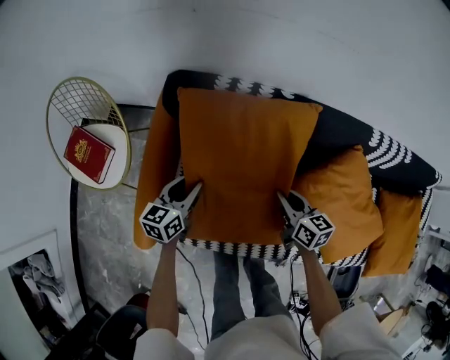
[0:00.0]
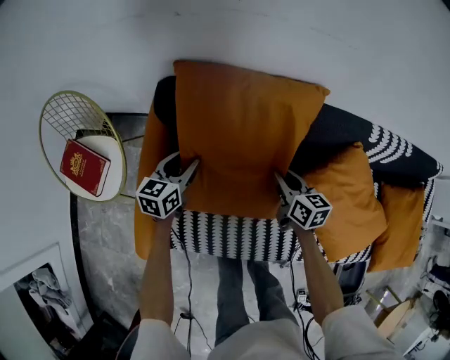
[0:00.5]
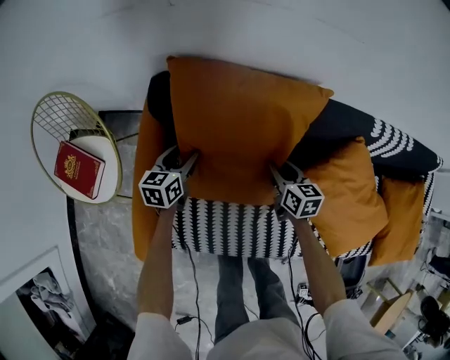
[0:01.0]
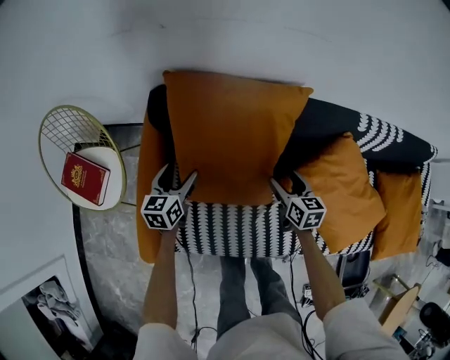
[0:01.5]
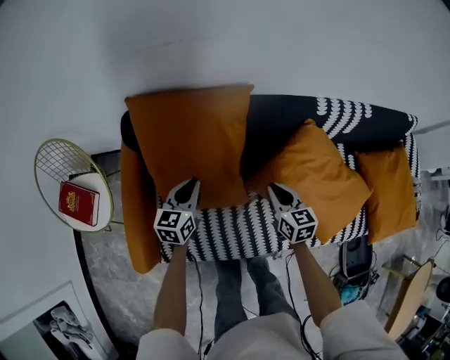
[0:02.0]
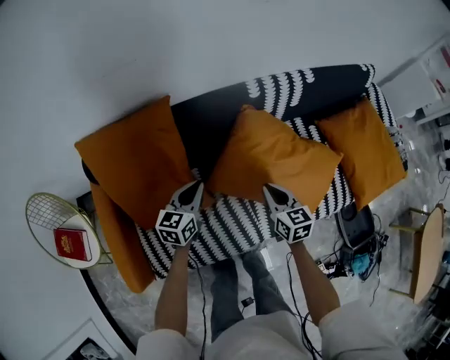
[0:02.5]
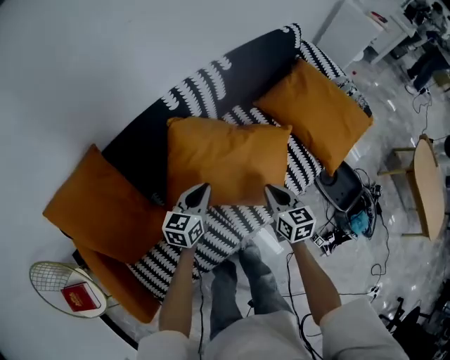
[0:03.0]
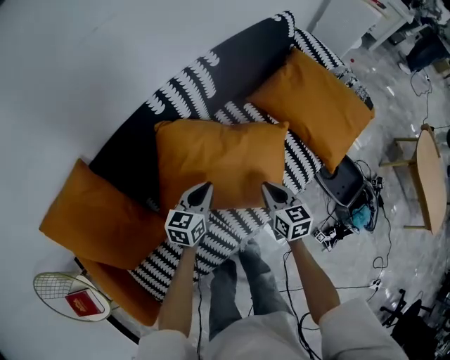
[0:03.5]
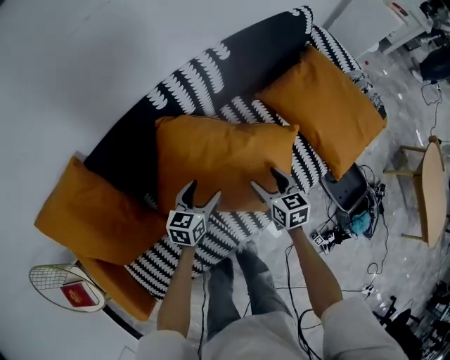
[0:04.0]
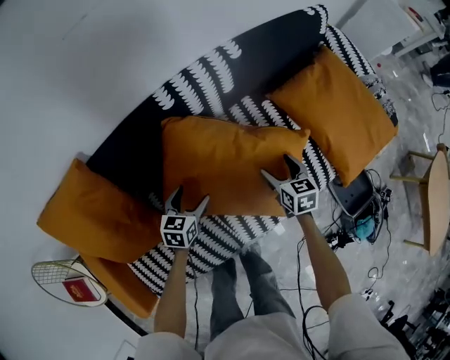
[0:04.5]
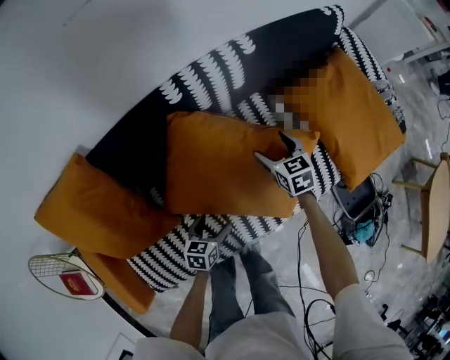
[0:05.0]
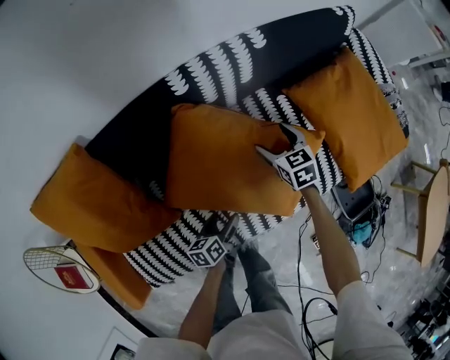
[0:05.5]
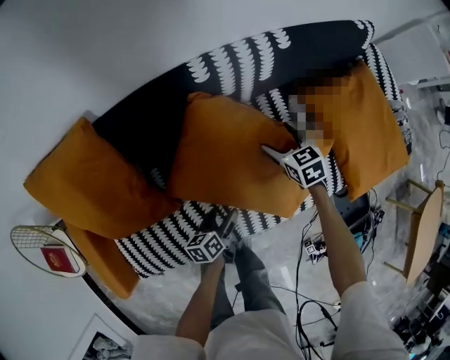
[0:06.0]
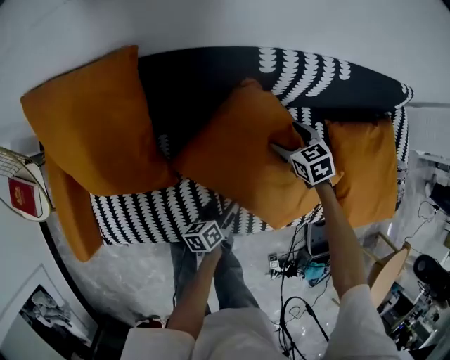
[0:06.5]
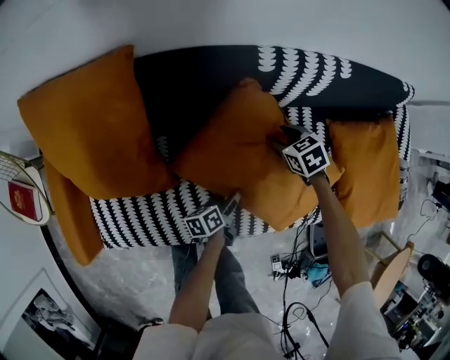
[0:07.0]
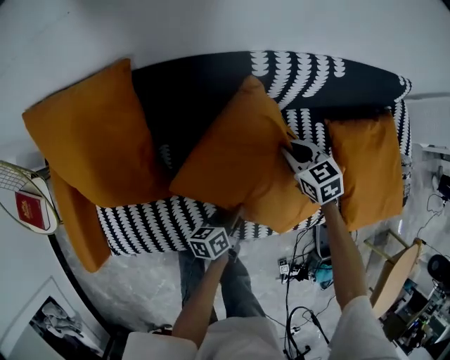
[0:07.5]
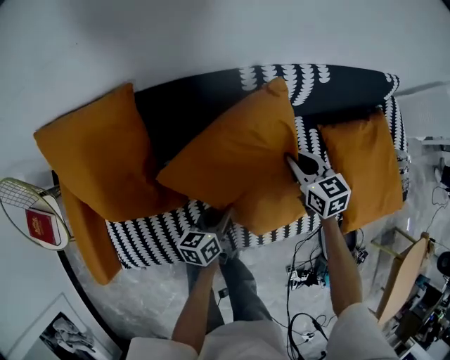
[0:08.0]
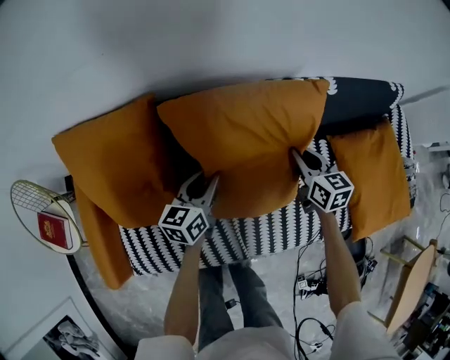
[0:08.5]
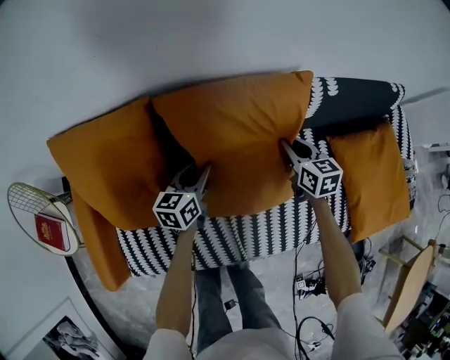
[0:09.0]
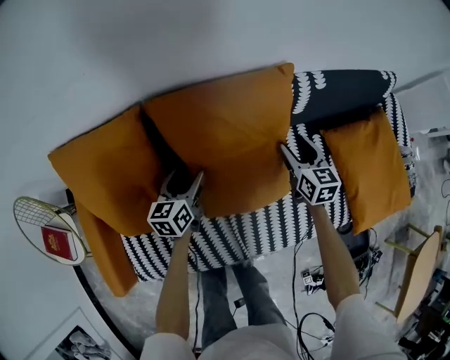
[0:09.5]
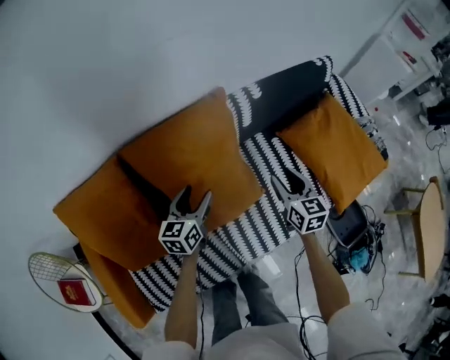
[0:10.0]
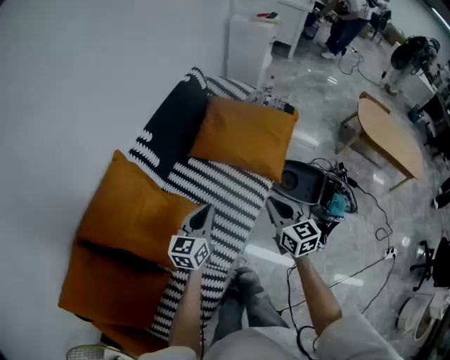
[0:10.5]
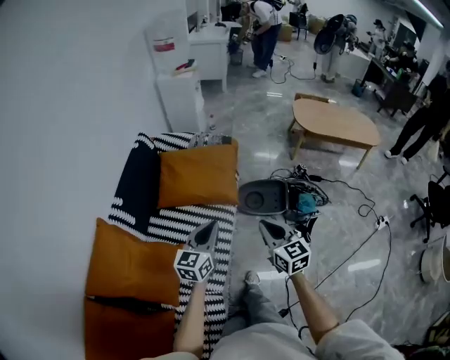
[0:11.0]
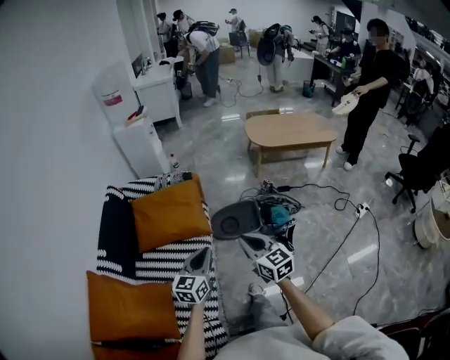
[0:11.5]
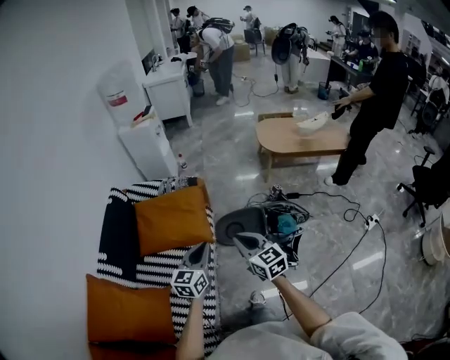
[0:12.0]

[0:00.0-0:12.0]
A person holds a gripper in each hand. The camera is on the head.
0:00.0 to 0:02.0: Both grippers move to the right, approximately 15 cm. The right gripper changes its angle by approximately 20 degrees, and opens, then closes once more. The left gripper opens, then closes again.
0:02.0 to 0:04.0: The right gripper ends up some 35 cm from where it was, swivels roughly 30 degrees, and opens. Meanwhile the left gripper moves roughly 40 cm, swivels approximately 40 degrees, and opens.
0:04.0 to 0:06.0: The right gripper is displaced forward and to the left by about 15 cm, and rotates approximately 30 degrees; the left gripper moves backward and downward, some 15 cm, and twists about 50 degrees counterclockwise, seen from behind.
0:06.0 to 0:08.0: The right gripper travels upward and to the left by approximately 10 cm, and closes. Meanwhile the left gripper heads upward and forward, covering some 10 cm, and closes up.
0:08.0 to 0:10.0: The left gripper shifts about 20 cm upward and forward, turns by roughly 30 degrees, and opens up; the right gripper heads to the right, upward and backward, covering approximately 15 cm, turns by roughly 30 degrees, and opens up.
0:10.0 to 0:12.0: The two grippers travel together, some 60 cm. The right gripper turns by approximately 50 degrees, and closes its fingers. The left gripper turns by about 70 degrees, and closes up.

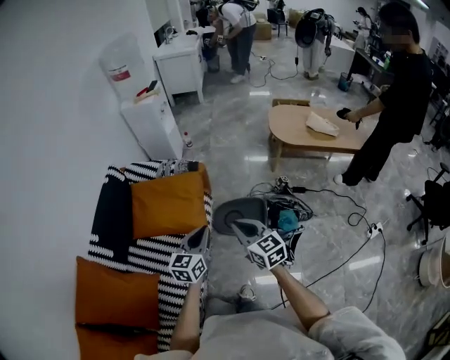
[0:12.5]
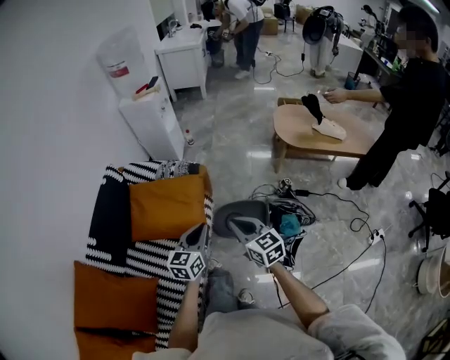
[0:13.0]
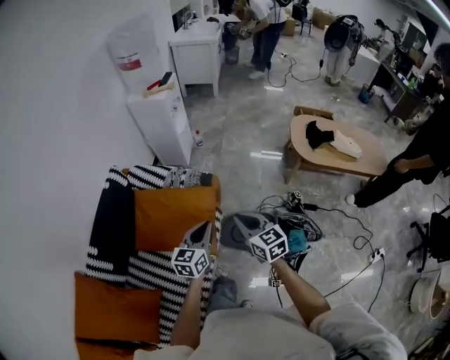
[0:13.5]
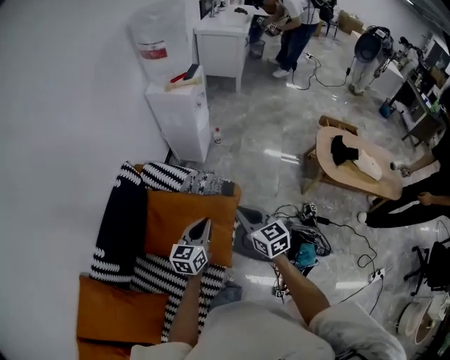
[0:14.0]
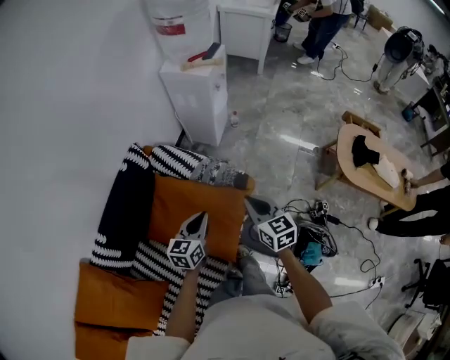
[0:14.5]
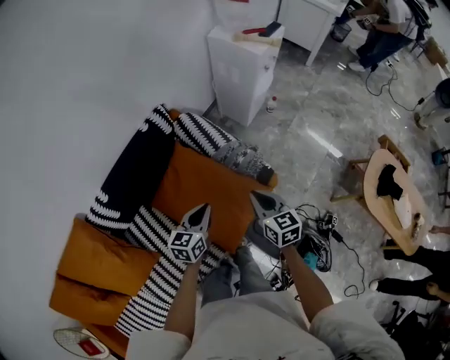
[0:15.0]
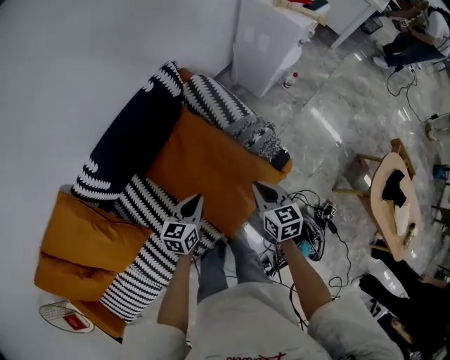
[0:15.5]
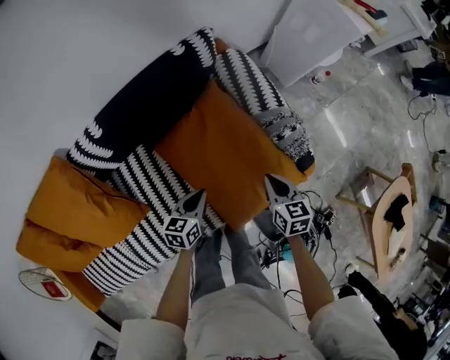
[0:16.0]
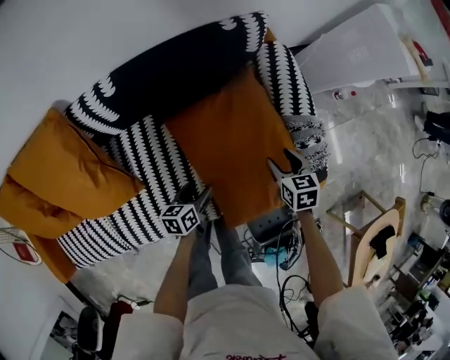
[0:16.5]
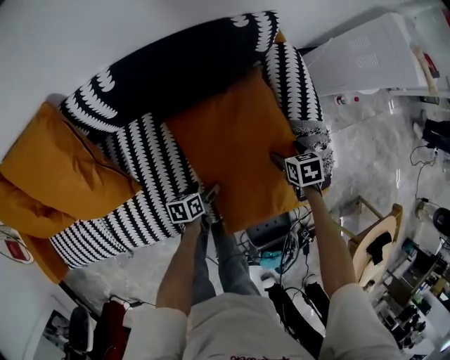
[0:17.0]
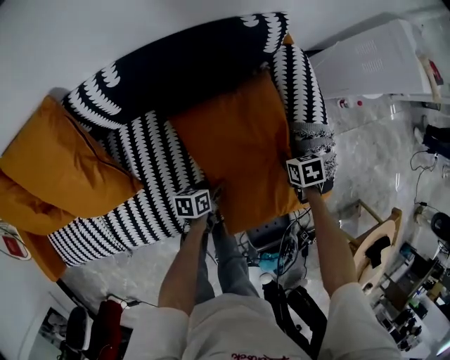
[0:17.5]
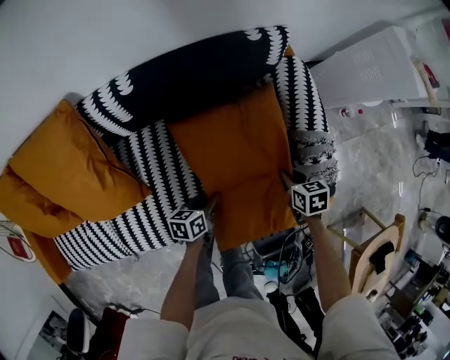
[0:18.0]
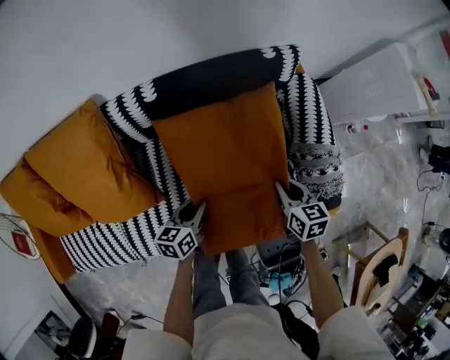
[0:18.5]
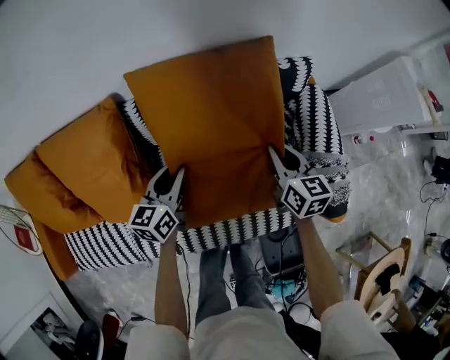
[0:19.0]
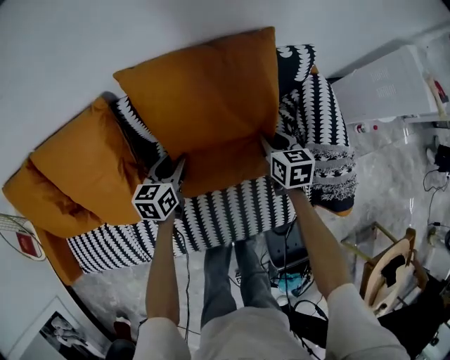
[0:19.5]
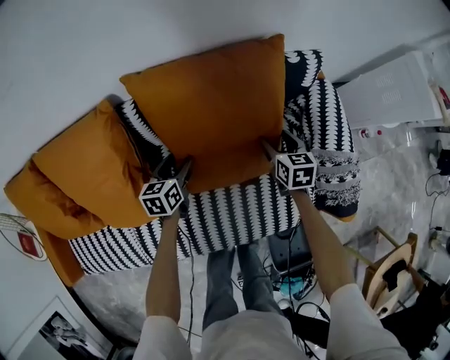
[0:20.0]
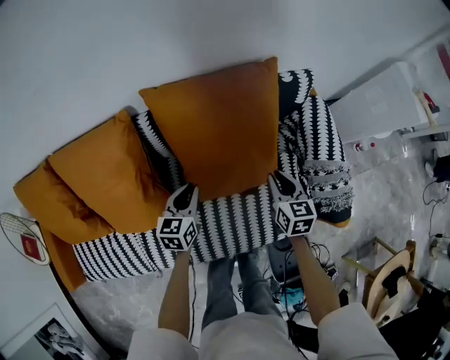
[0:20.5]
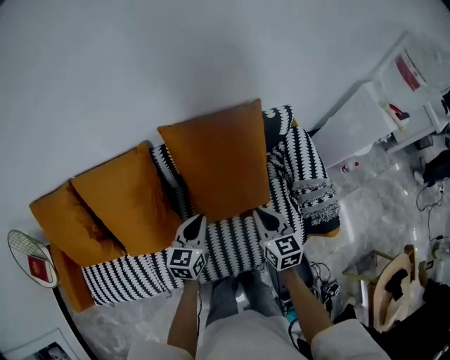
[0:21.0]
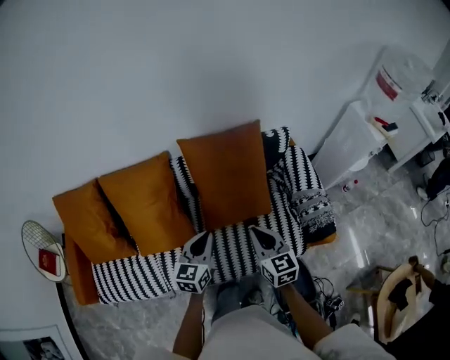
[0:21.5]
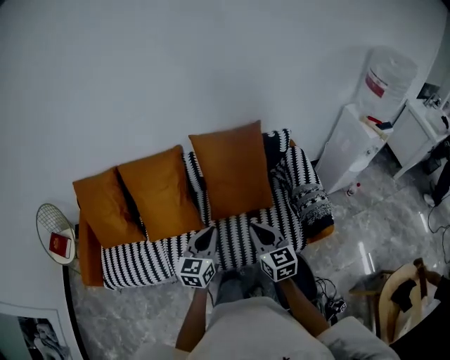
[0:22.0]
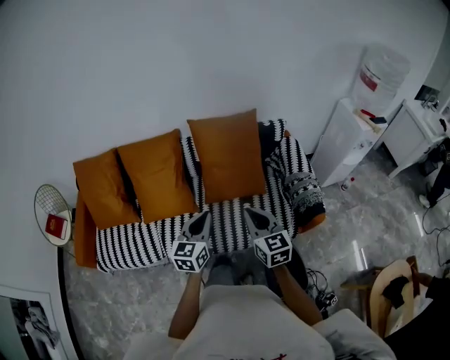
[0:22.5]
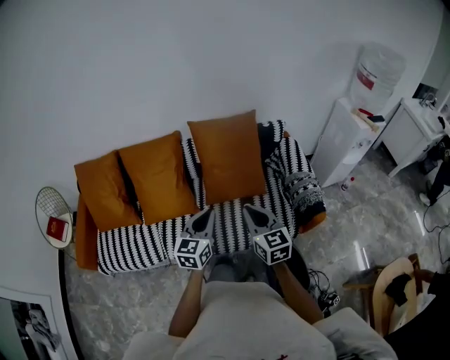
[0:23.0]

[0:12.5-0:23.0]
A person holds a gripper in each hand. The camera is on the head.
0:12.5 to 0:14.5: The left gripper is displaced forward and to the left by about 40 cm. Meanwhile the right gripper heads forward, covering about 40 cm.
0:14.5 to 0:16.5: Both grippers move downward, roughly 30 cm. The right gripper angles its fingers downward, by about 30 degrees, and opens its fingers. The left gripper rotates around the line of its fingers by about 50 degrees, counterclockwise from behind, and opens.
0:16.5 to 0:19.0: The grippers both shift to the left, upward and forward by about 25 cm. The left gripper swivels about 30 degrees, and closes up; the right gripper changes its angle by approximately 30 degrees, and closes.
0:19.0 to 0:21.0: The left gripper is displaced backward by about 10 cm, reaches about 15 cm downward, then returns, and opens, then closes once more. Meanwhile the right gripper moves backward, upward and to the left, some 15 cm, and opens, then closes once more.
0:21.0 to 0:23.0: Both grippers travel together backward and upward, approximately 30 cm.

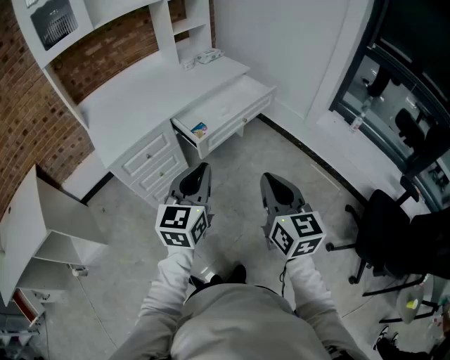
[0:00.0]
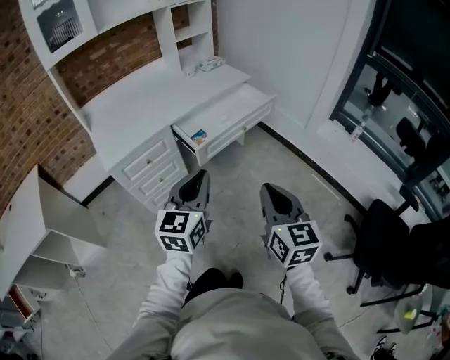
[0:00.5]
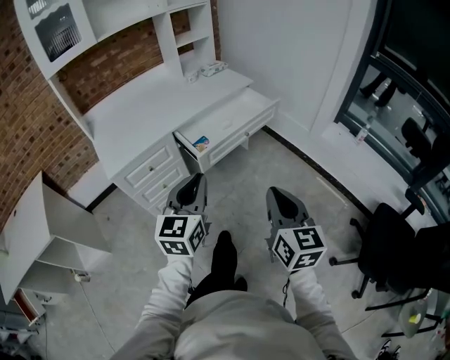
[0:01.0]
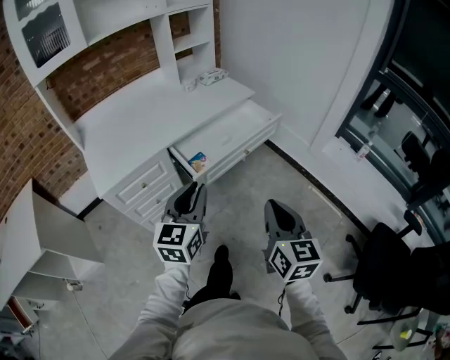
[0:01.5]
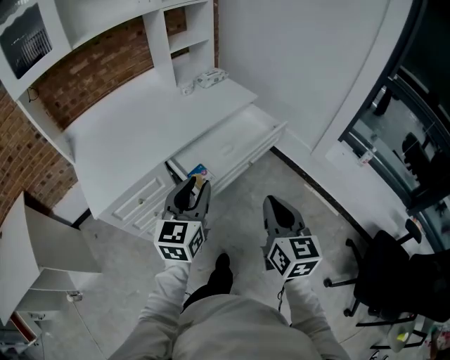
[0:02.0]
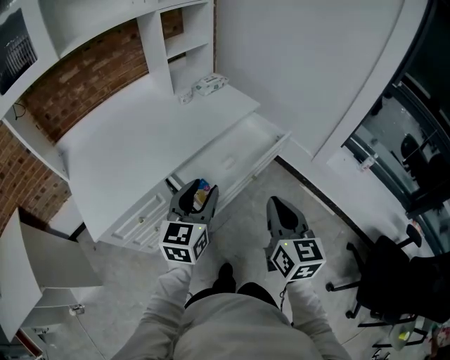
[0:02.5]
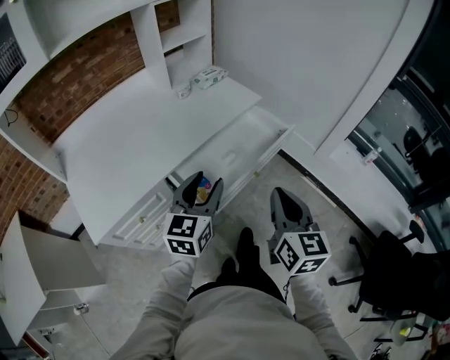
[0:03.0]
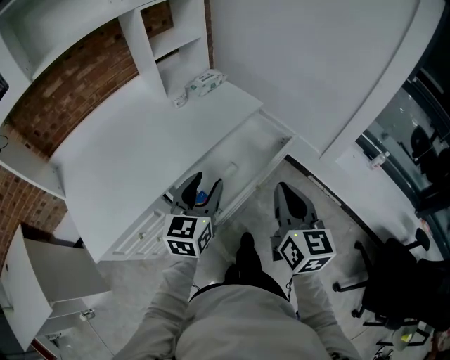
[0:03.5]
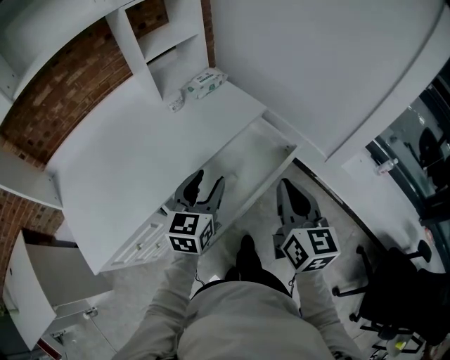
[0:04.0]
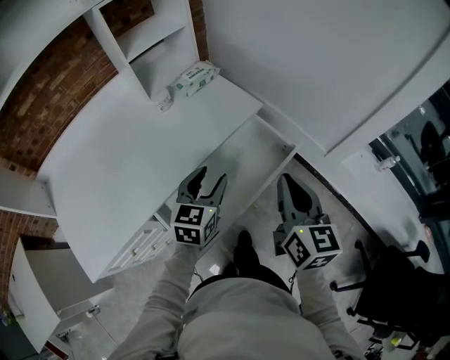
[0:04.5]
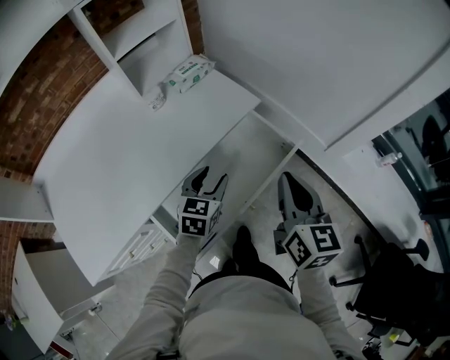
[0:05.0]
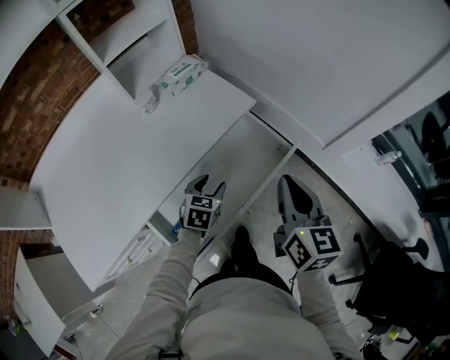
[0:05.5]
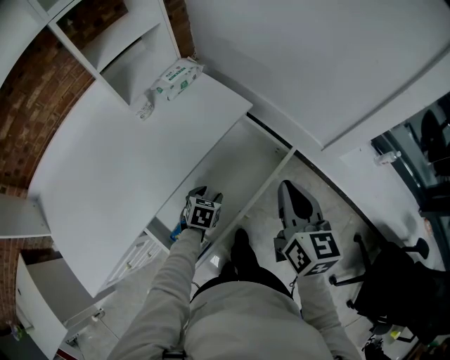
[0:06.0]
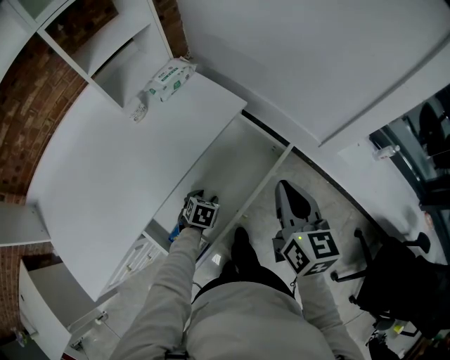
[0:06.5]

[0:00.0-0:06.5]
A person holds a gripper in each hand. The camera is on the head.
0:00.0 to 0:02.0: Both grippers travel together forward, approximately 20 cm. The left gripper opens up.
0:02.0 to 0:04.5: The grippers both shift forward by some 35 cm.
0:04.5 to 0:06.5: The right gripper goes roughly 5 cm forward. Meanwhile the left gripper is displaced downward by some 25 cm, and points its fingers about 40 degrees further downward.
